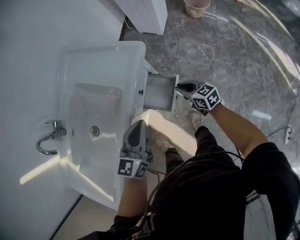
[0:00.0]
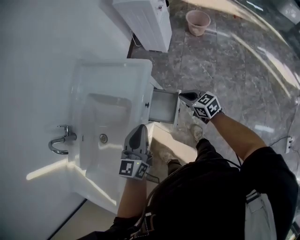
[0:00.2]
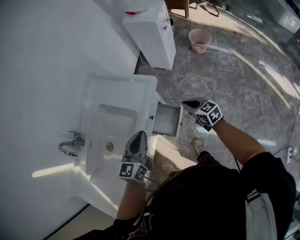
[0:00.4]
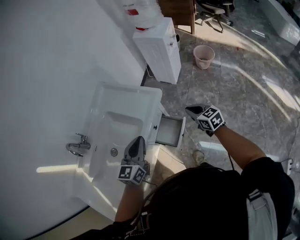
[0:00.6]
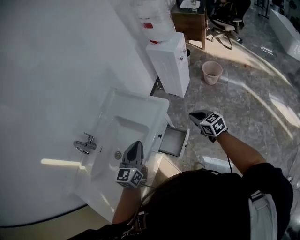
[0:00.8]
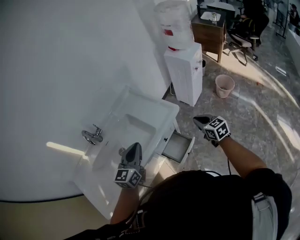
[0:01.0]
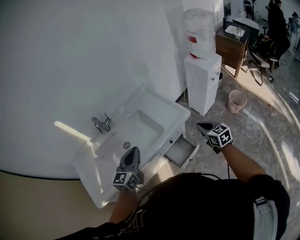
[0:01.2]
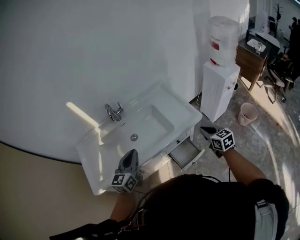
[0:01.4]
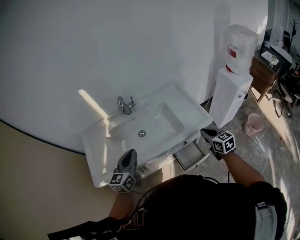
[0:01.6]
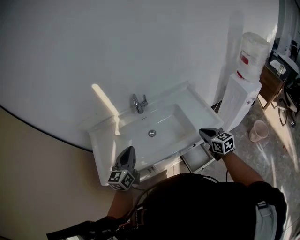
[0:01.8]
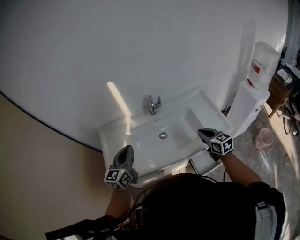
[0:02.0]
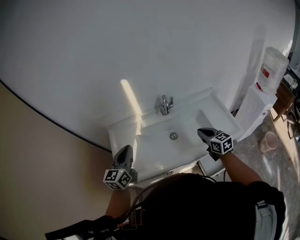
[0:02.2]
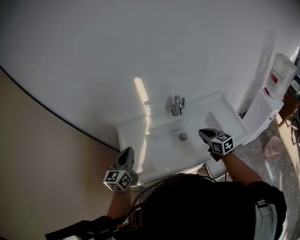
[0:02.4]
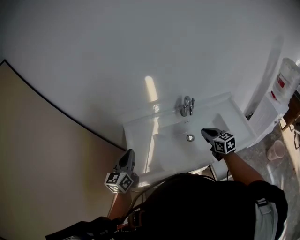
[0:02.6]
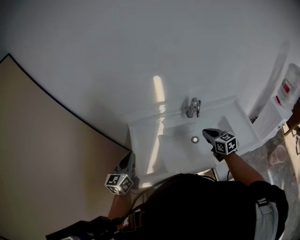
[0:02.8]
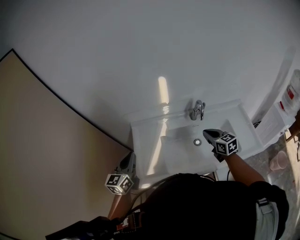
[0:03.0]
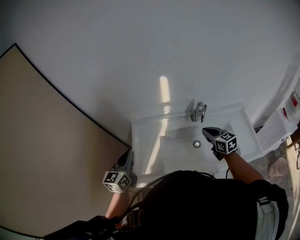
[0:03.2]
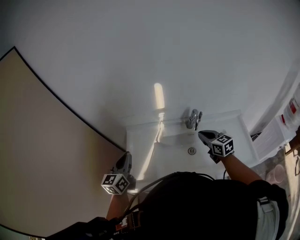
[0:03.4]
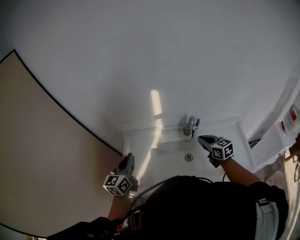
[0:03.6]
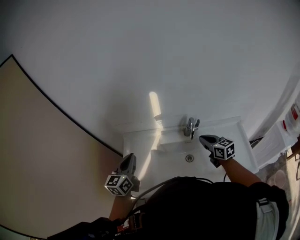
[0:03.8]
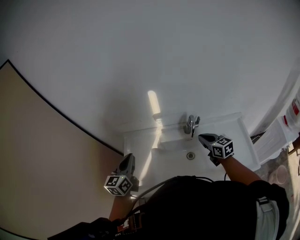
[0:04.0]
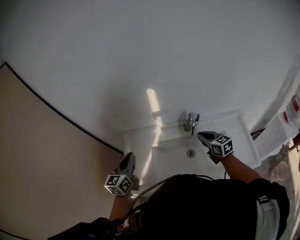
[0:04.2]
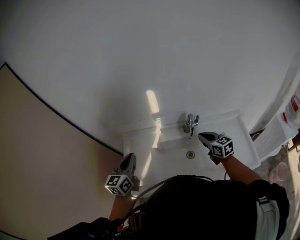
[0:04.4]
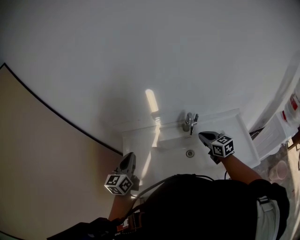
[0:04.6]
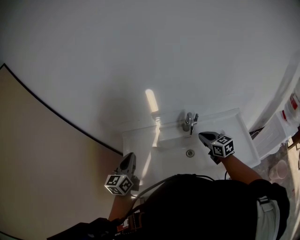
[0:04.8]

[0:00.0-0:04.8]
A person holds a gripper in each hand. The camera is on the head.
0:00.0 to 0:01.6: The left gripper ends up some 35 cm from where it was, and rotates about 50 degrees. Meanwhile the right gripper is displaced upward by approximately 30 cm, and rotates about 30 degrees.
0:01.6 to 0:03.2: The pair of grippers is taken to the left and forward, some 50 cm. The right gripper rotates some 20 degrees.
0:03.2 to 0:04.8: The grippers both shift to the right by approximately 10 cm.

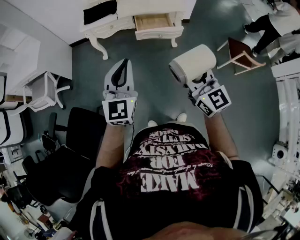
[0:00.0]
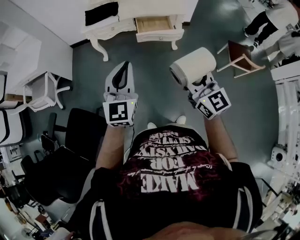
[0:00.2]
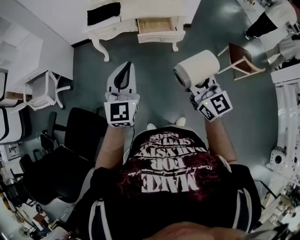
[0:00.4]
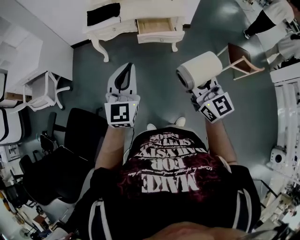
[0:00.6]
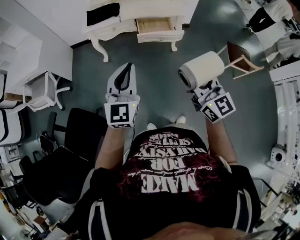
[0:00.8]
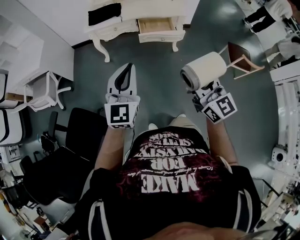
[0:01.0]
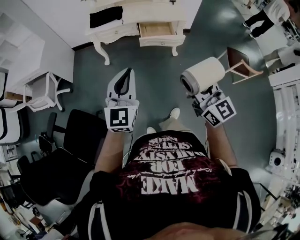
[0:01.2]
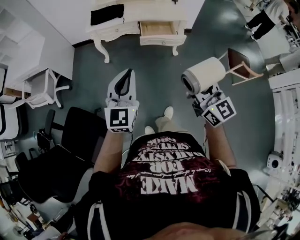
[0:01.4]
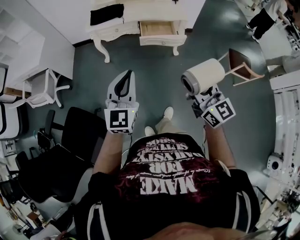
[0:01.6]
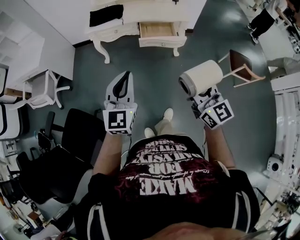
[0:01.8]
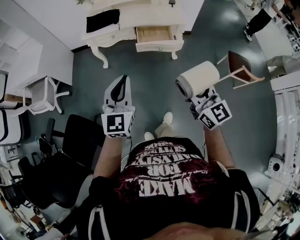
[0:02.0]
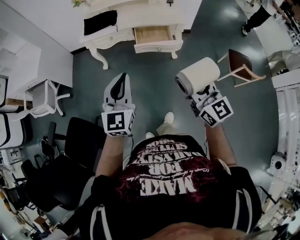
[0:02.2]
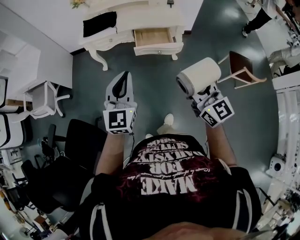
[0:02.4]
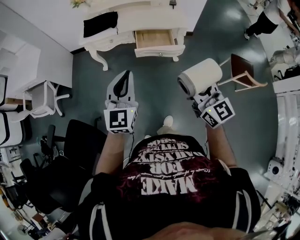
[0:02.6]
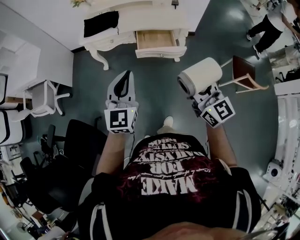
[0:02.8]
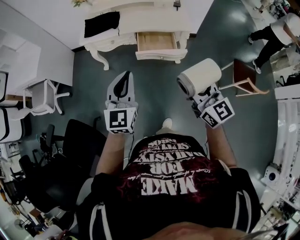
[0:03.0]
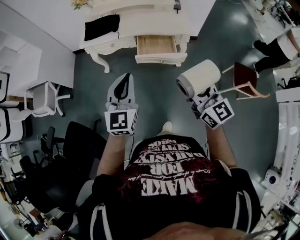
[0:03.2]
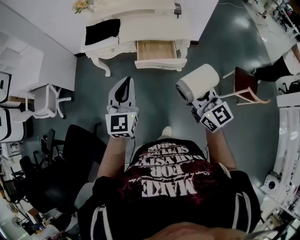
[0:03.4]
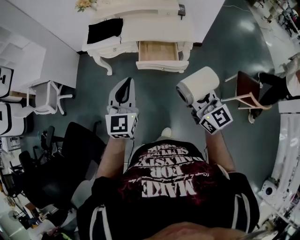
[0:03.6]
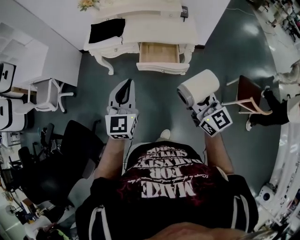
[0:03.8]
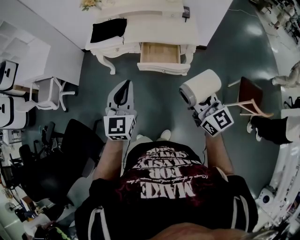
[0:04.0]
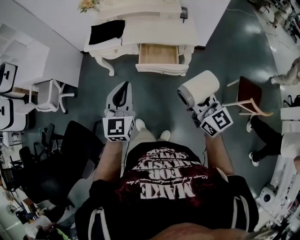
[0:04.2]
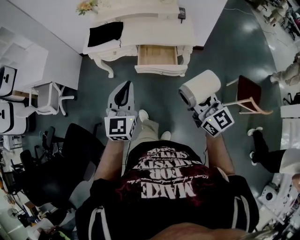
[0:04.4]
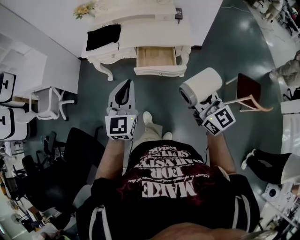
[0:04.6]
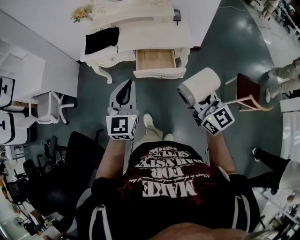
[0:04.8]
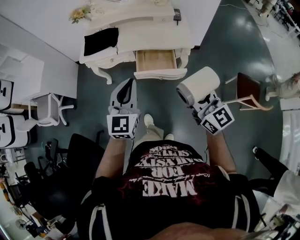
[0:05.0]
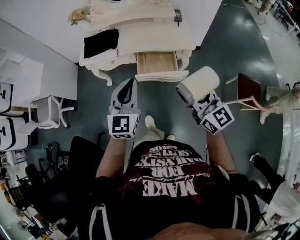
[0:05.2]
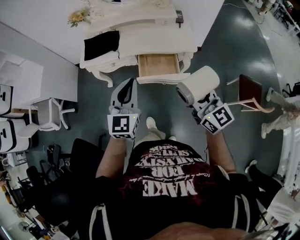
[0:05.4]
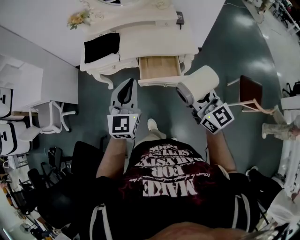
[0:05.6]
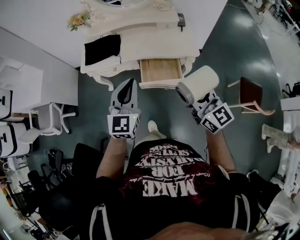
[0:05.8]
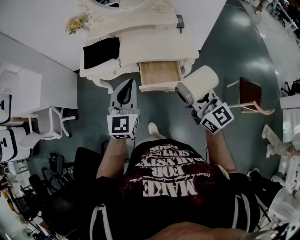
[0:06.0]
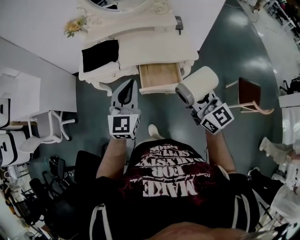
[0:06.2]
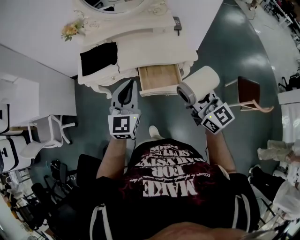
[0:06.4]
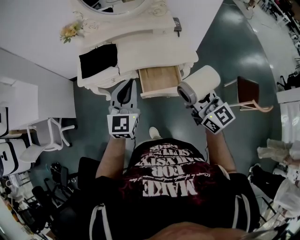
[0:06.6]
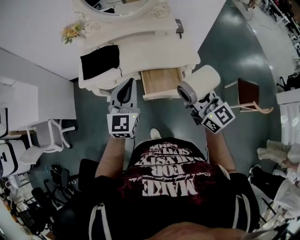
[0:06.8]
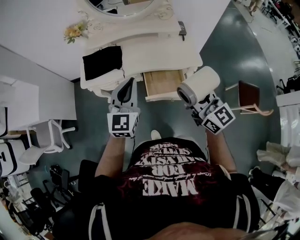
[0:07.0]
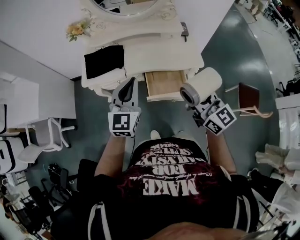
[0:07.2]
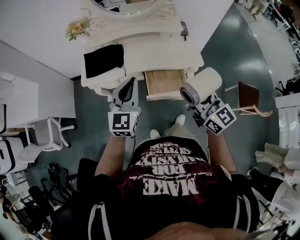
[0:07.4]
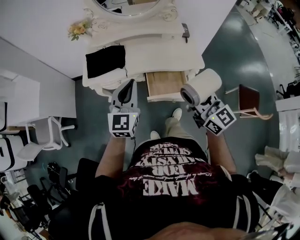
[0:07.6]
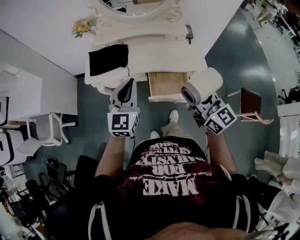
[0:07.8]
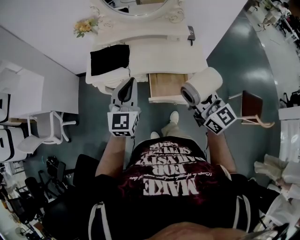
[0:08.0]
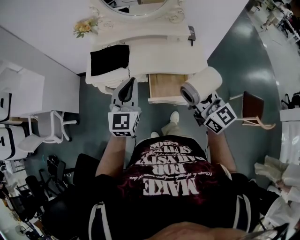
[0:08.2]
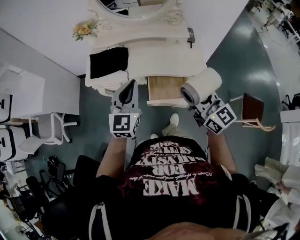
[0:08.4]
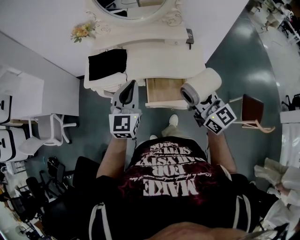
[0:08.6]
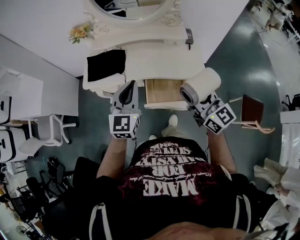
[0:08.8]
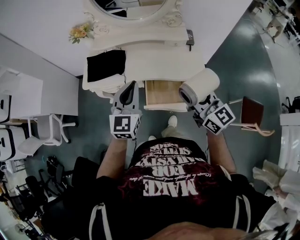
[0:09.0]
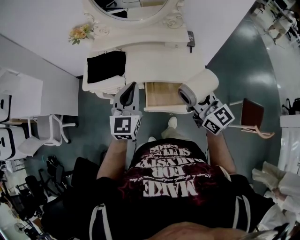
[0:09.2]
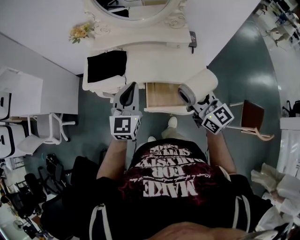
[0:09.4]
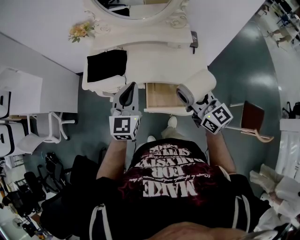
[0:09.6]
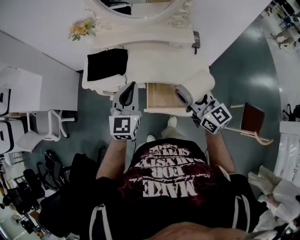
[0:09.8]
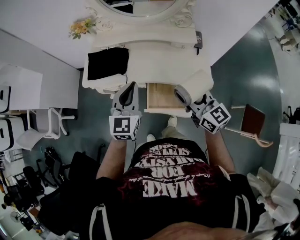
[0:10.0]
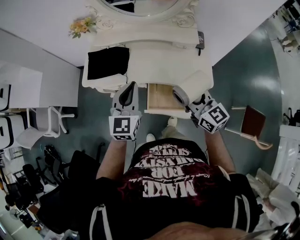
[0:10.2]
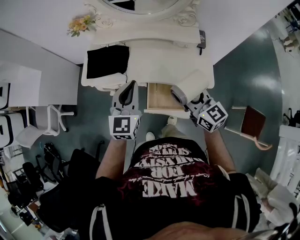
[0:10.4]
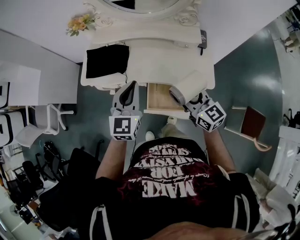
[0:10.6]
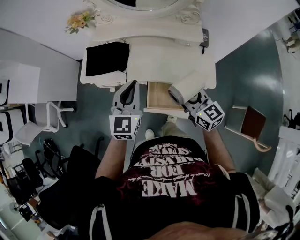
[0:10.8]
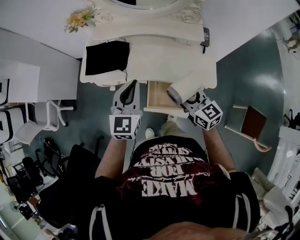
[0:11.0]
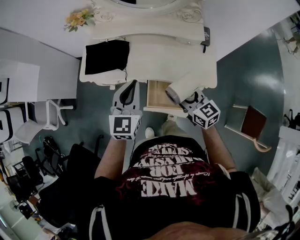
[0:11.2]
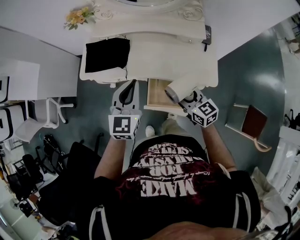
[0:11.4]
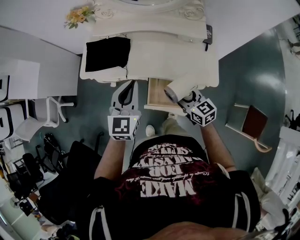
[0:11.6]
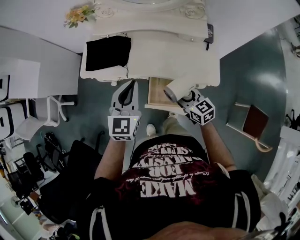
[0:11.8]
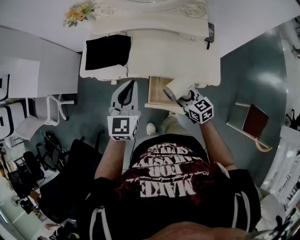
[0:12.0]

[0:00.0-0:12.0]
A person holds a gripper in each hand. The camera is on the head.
0:00.0 to 0:01.6: The grippers move only a little.
0:01.6 to 0:03.0: Both grippers travel together forward and to the right, about 20 cm.
0:03.0 to 0:04.4: Both grippers travel together to the right, about 5 cm.
0:04.4 to 0:06.0: Both grippers move forward, about 15 cm.
0:06.0 to 0:07.6: The two grippers go some 10 cm forward and to the left.
0:07.6 to 0:09.0: The right gripper is displaced forward and to the right by some 10 cm. Meanwhile the left gripper heads to the right, covering some 5 cm.
0:09.0 to 0:10.4: The right gripper heads forward and downward, covering about 10 cm; the left gripper shifts some 5 cm forward.
0:10.4 to 0:12.0: The right gripper goes some 15 cm downward, and turns by some 20 degrees.

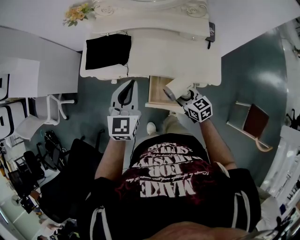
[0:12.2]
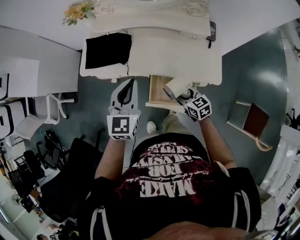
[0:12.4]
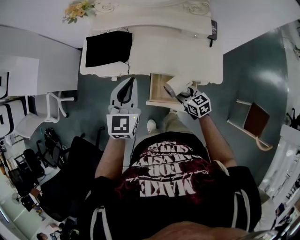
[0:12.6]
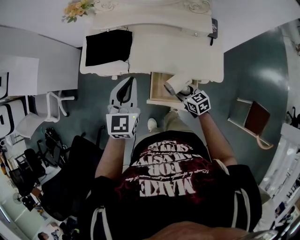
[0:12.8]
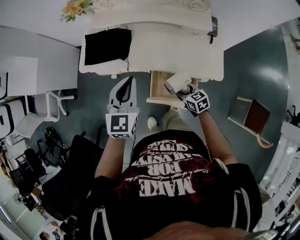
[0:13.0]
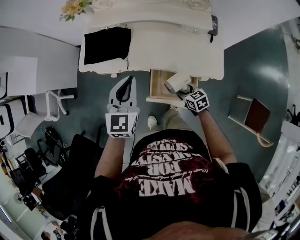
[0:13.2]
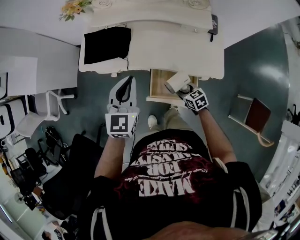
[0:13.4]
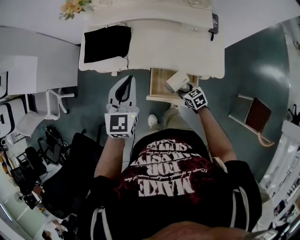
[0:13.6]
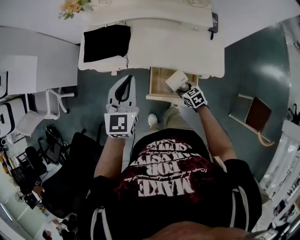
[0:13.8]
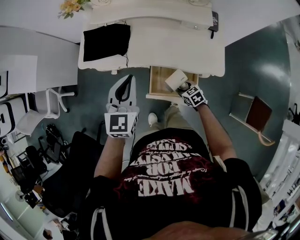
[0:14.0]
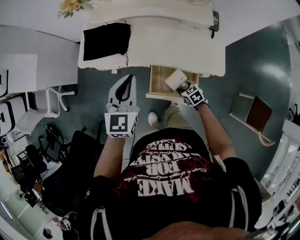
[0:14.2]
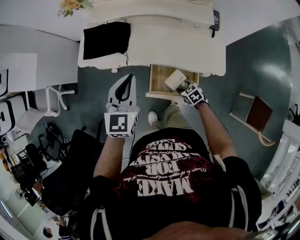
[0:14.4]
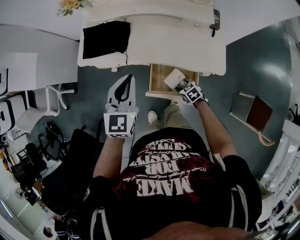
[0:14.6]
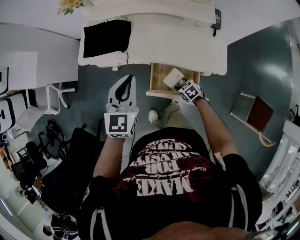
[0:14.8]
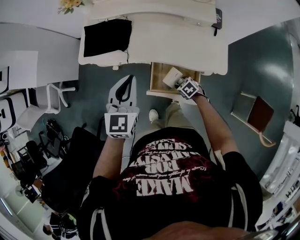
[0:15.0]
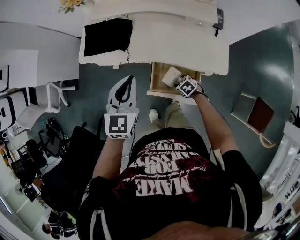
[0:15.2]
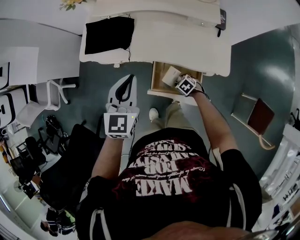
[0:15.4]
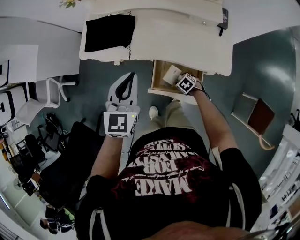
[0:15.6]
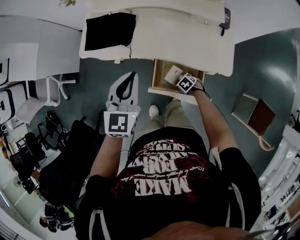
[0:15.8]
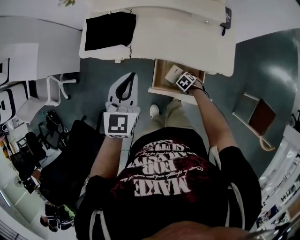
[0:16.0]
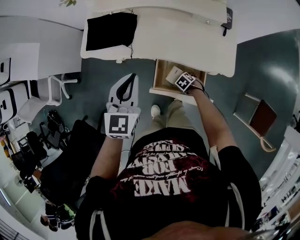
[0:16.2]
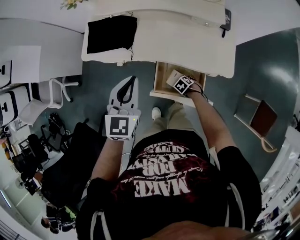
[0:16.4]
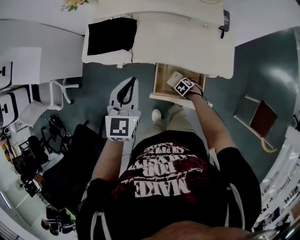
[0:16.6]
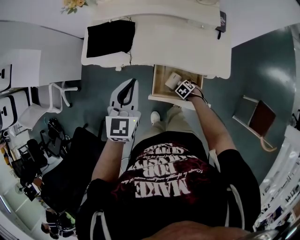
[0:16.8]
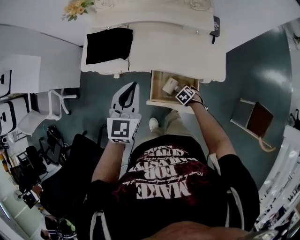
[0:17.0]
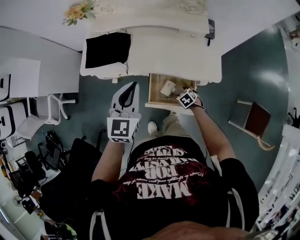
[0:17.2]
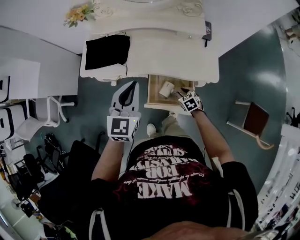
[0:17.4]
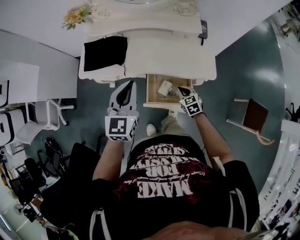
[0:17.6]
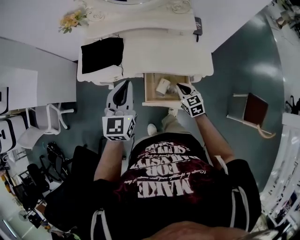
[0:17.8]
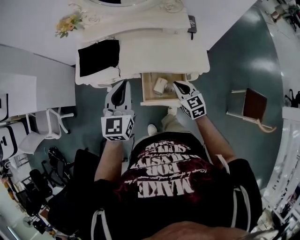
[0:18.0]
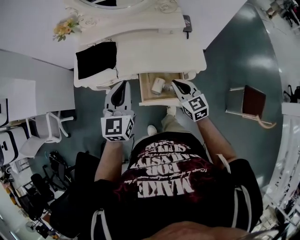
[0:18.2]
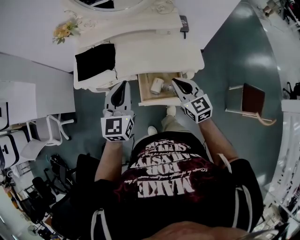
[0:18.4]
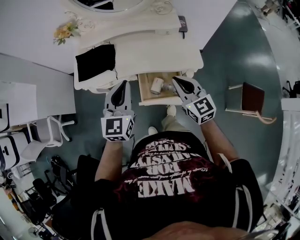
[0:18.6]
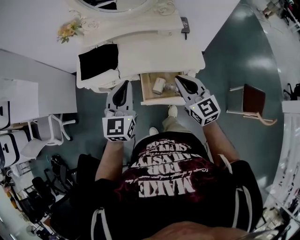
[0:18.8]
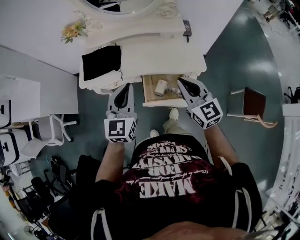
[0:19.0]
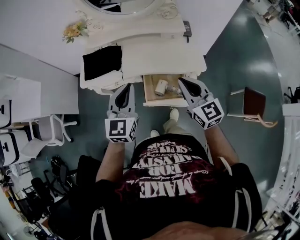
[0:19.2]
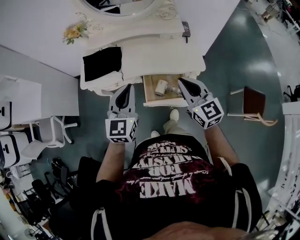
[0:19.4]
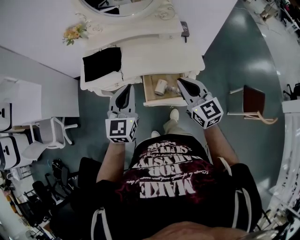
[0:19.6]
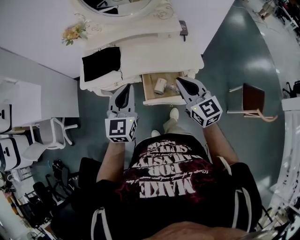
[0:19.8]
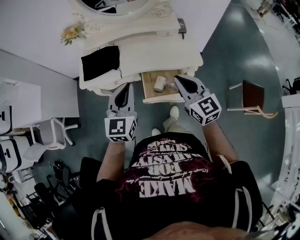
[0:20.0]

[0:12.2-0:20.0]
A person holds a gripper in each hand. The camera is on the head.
0:12.2 to 0:13.8: The right gripper shifts roughly 15 cm downward.
0:13.8 to 0:15.4: The right gripper goes some 10 cm downward, and swivels about 30 degrees.
0:15.4 to 0:16.8: The right gripper is displaced downward by roughly 5 cm.
0:16.8 to 0:18.4: The right gripper moves upward, about 40 cm, angles its fingers upward, by approximately 60 degrees, and closes up, while the left gripper heads upward, covering roughly 5 cm.
0:18.4 to 0:20.0: The right gripper goes roughly 10 cm upward and backward, while the left gripper goes some 5 cm backward.
